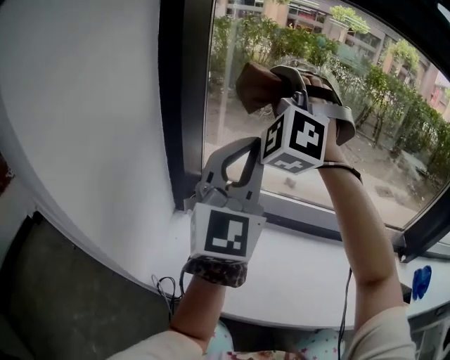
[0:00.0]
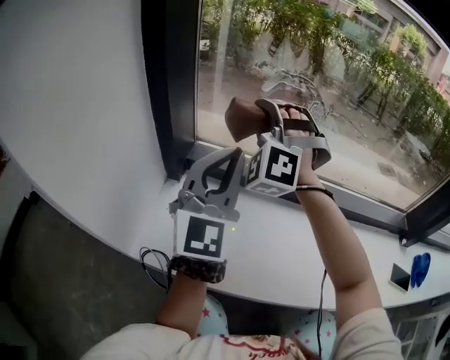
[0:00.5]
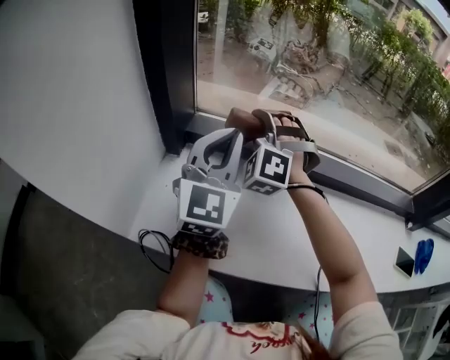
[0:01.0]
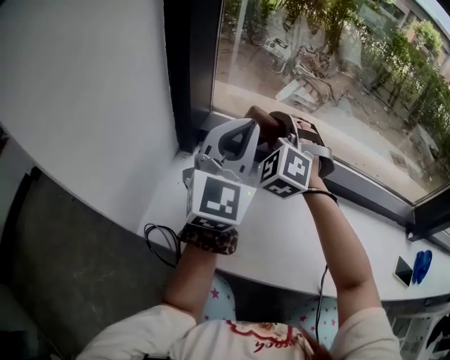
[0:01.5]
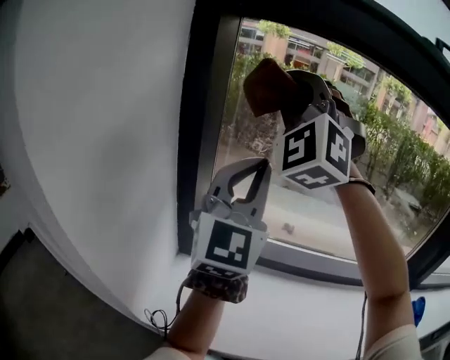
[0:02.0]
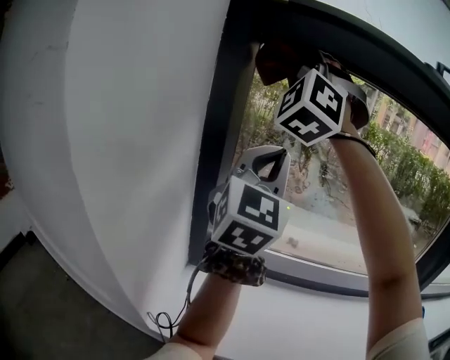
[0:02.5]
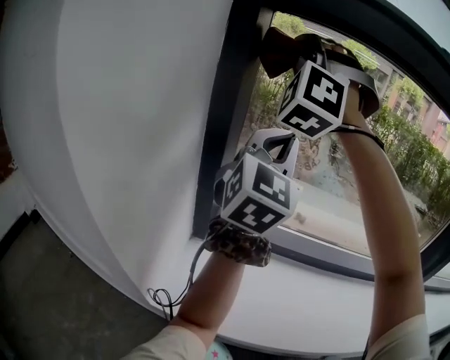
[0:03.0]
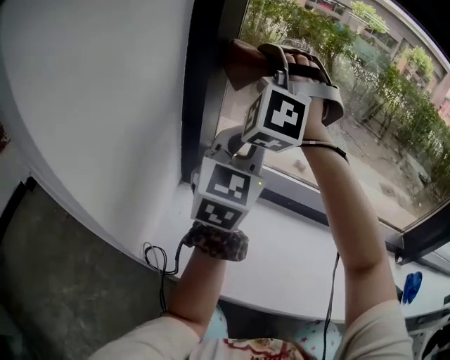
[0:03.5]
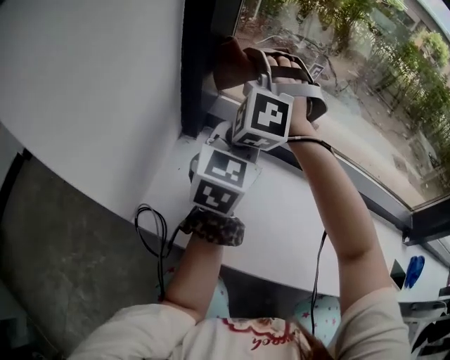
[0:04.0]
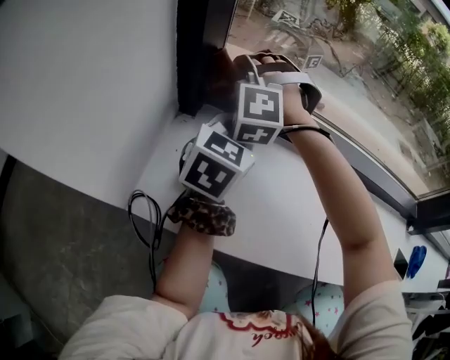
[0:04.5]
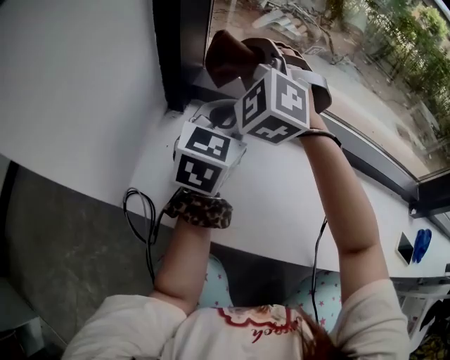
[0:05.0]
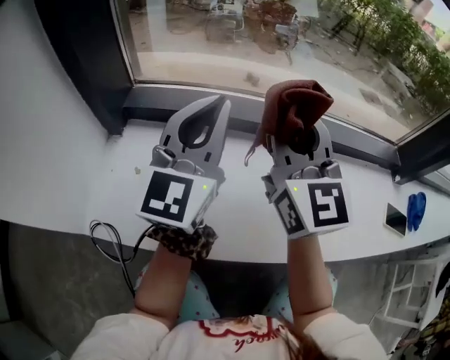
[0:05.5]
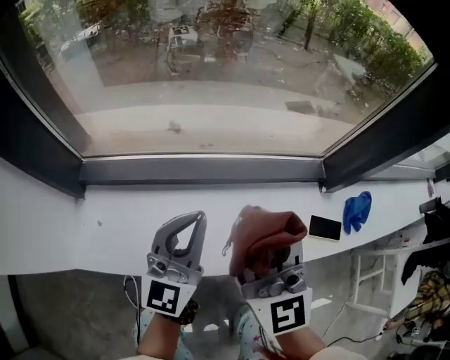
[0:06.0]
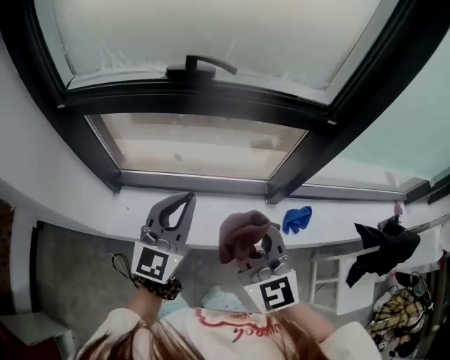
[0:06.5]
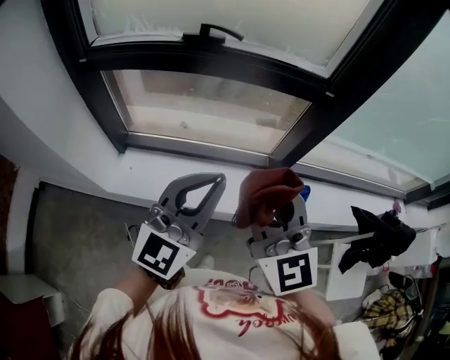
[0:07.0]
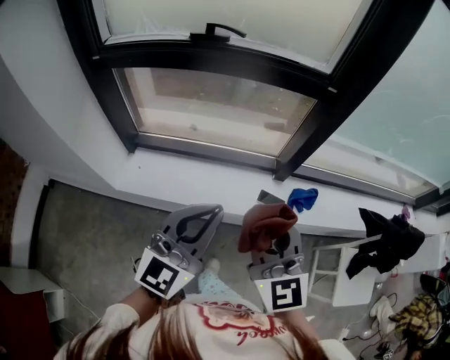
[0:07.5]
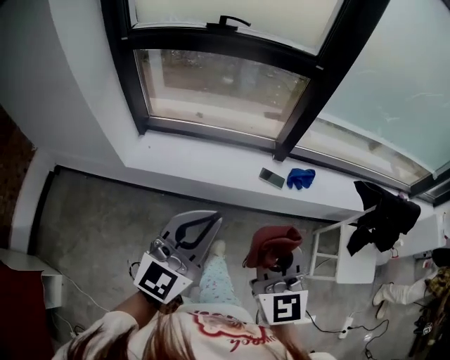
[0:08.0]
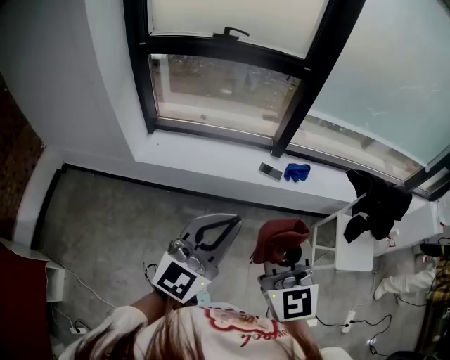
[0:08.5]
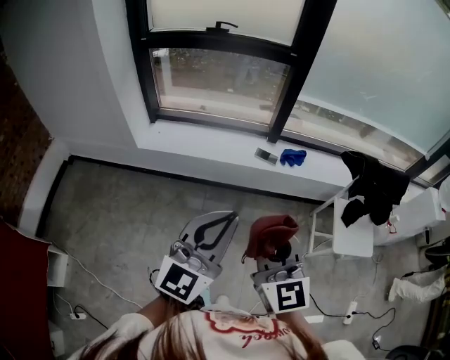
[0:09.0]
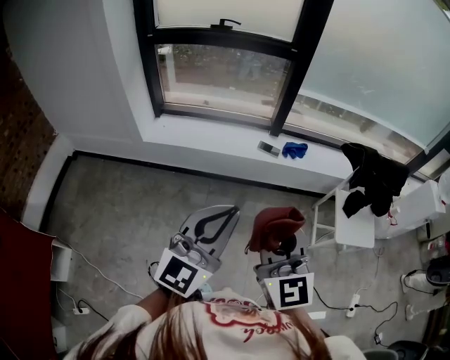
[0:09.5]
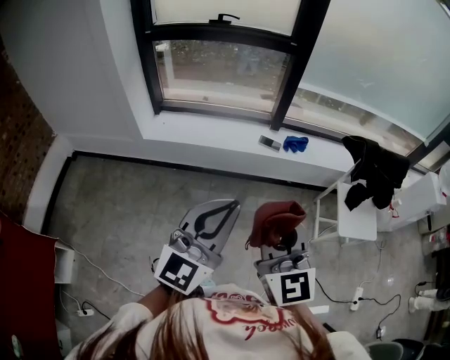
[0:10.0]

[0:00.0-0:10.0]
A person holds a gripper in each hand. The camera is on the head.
0:00.0 to 0:02.0: The left gripper moves approximately 15 cm downward and comes back.
0:02.0 to 0:04.0: The left gripper shifts some 25 cm downward, and swivels approximately 40 degrees.
0:04.0 to 0:06.0: The left gripper shifts by roughly 35 cm, and changes its angle by about 20 degrees.
0:06.0 to 0:08.0: The left gripper shifts by roughly 70 cm.
0:08.0 to 0:10.0: The left gripper moves roughly 30 cm.

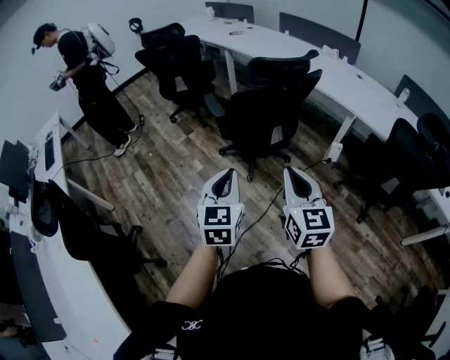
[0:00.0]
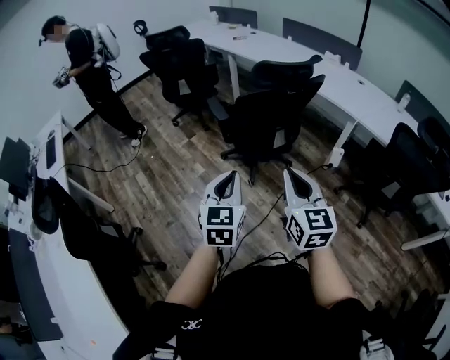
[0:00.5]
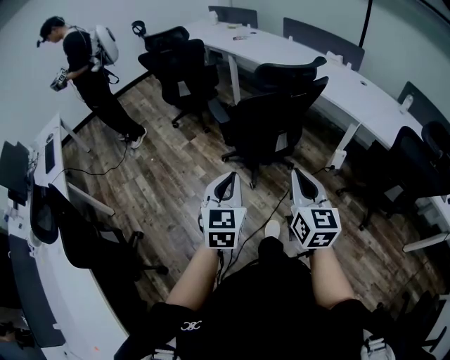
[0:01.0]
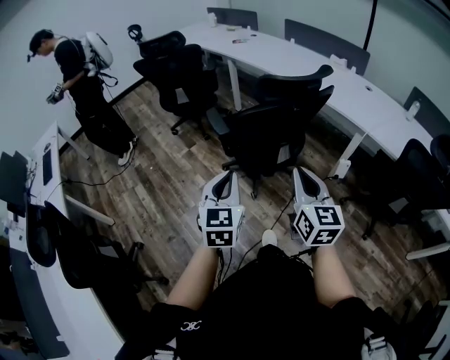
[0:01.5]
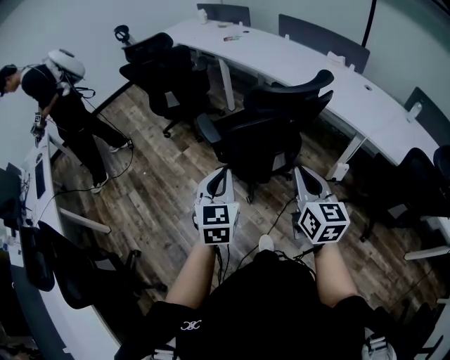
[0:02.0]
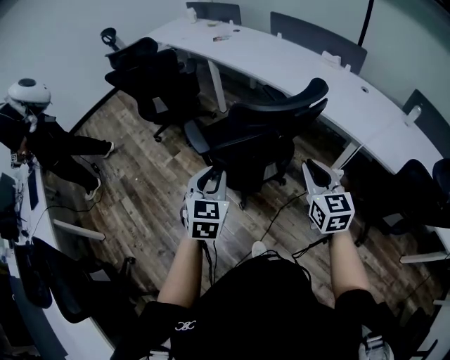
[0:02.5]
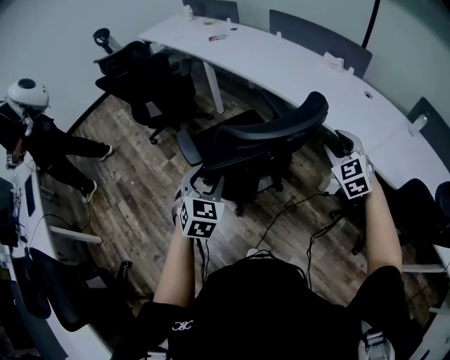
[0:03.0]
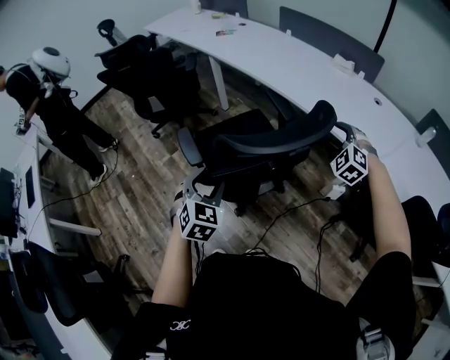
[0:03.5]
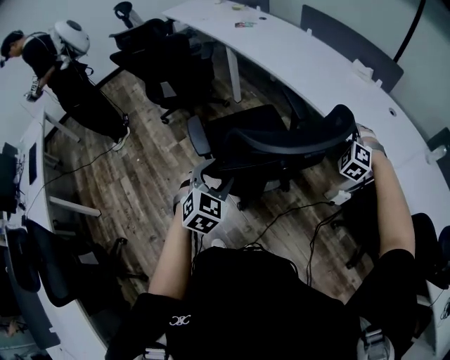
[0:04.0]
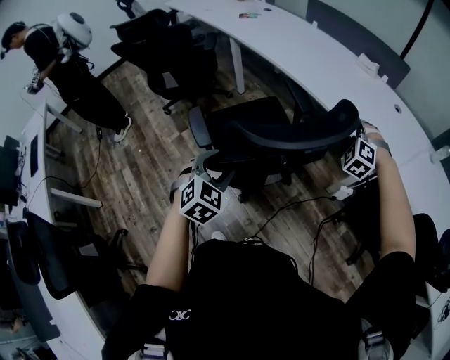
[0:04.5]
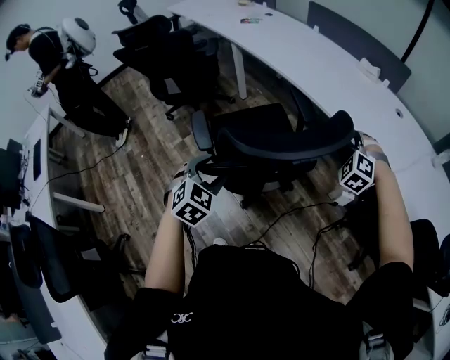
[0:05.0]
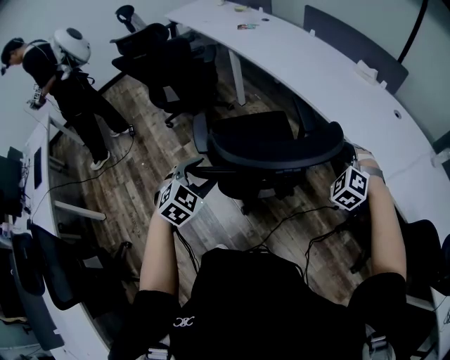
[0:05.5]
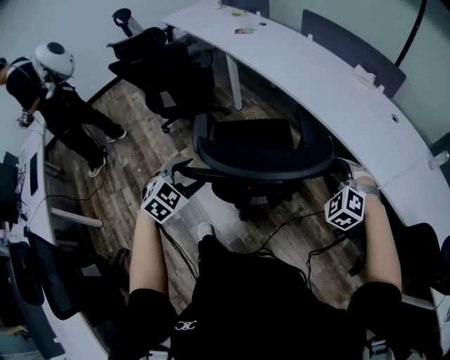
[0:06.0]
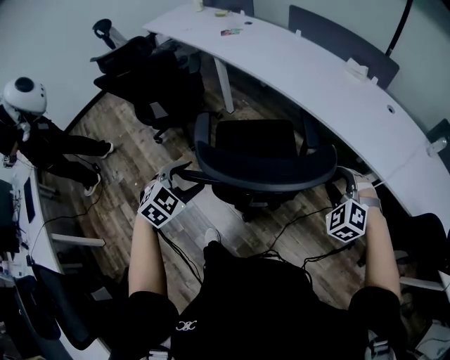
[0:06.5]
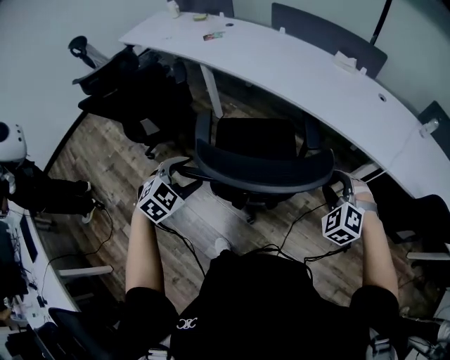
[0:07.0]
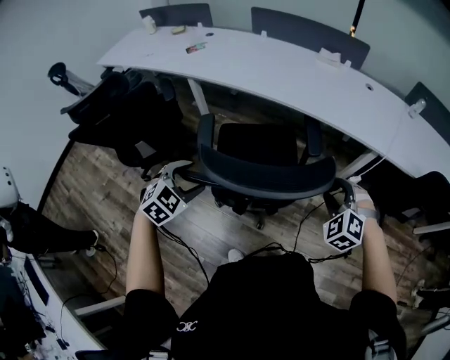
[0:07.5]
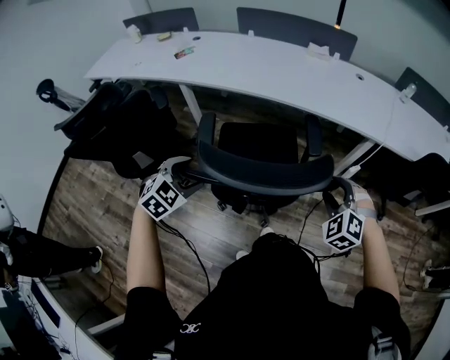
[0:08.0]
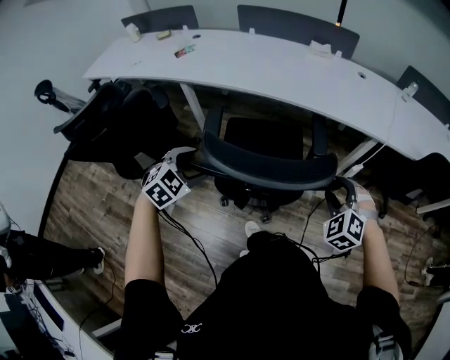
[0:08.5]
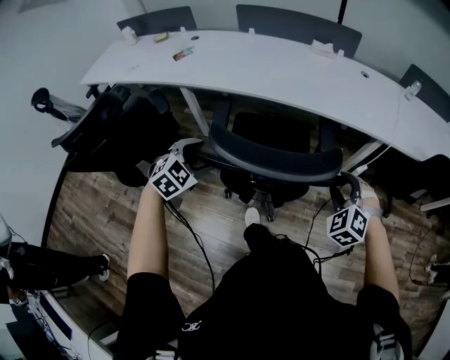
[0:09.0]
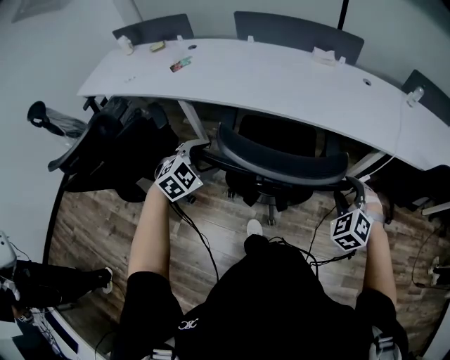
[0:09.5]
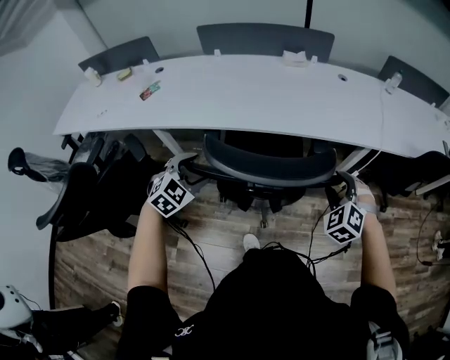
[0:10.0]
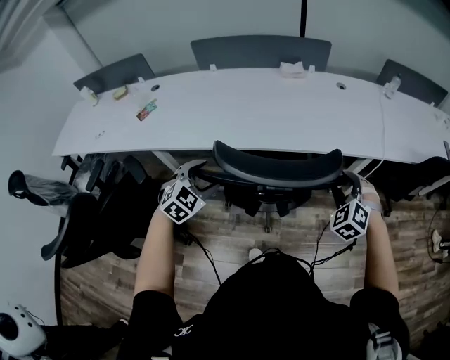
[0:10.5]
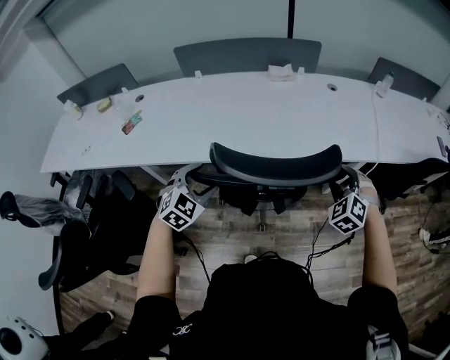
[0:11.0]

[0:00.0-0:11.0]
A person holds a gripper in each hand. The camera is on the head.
0:00.0 to 0:02.0: The grippers both shift forward by roughly 25 cm.
0:02.0 to 0:03.5: The left gripper moves forward, about 20 cm, rotates approximately 30 degrees, and opens its fingers; the right gripper shifts some 40 cm forward and to the right, twists some 70 degrees counterclockwise, seen from behind, and opens.
0:03.5 to 0:05.5: The left gripper shifts by some 5 cm.
0:05.5 to 0:07.5: The left gripper changes place by about 30 cm, and turns by about 30 degrees; the right gripper changes place by some 20 cm, and changes its angle by about 30 degrees.
0:07.5 to 0:09.0: The right gripper heads to the left, covering about 5 cm. The left gripper shifts some 15 cm forward and to the left.
0:09.0 to 0:11.0: Both grippers move forward, some 30 cm.

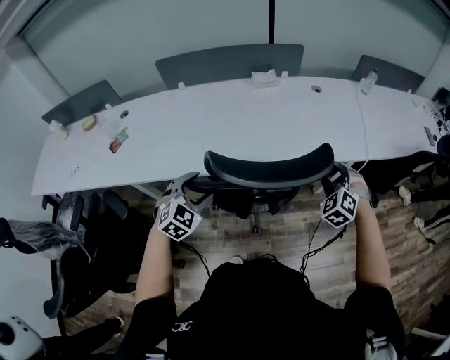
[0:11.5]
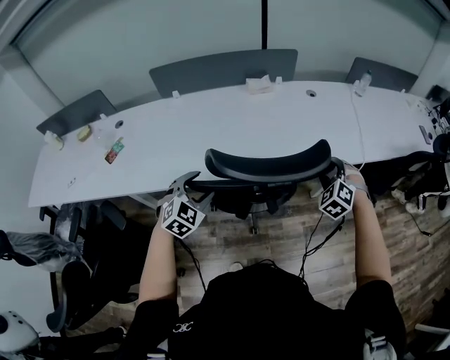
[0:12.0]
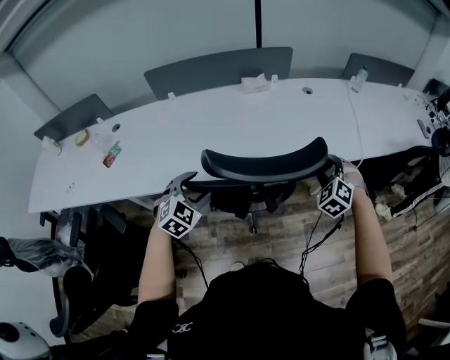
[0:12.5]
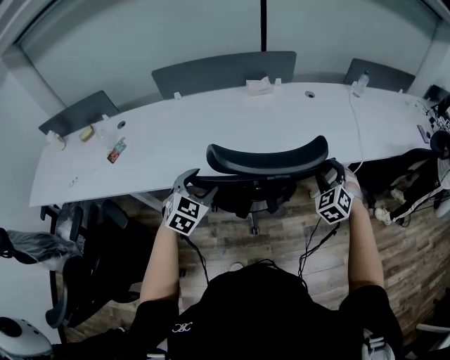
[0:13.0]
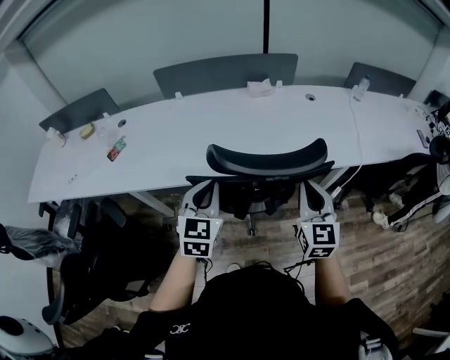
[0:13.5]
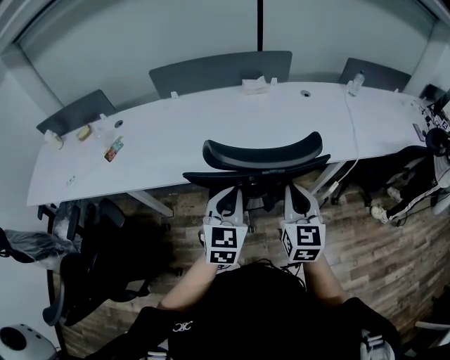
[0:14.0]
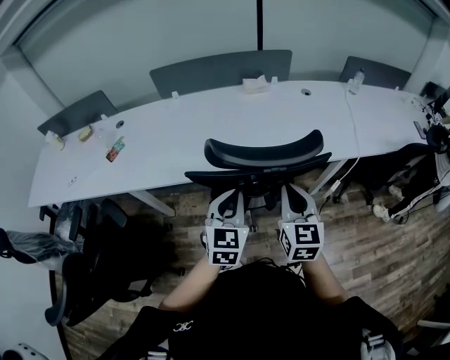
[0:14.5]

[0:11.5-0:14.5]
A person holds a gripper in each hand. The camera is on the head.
0:11.5 to 0:13.0: The grippers move only a little.
0:13.0 to 0:14.5: The right gripper travels to the left, backward and upward by about 20 cm, rolls clockwise, seen from behind, by roughly 50 degrees, and closes. The left gripper goes approximately 15 cm to the right, backward and upward, turns by about 30 degrees, and closes.

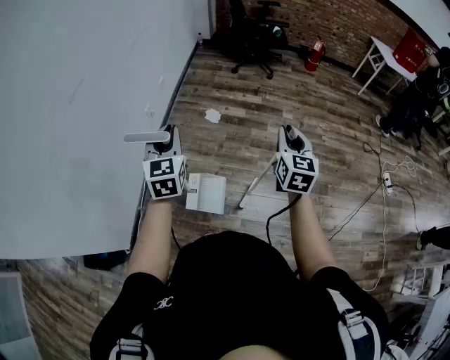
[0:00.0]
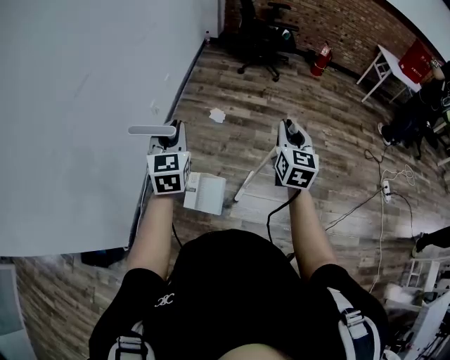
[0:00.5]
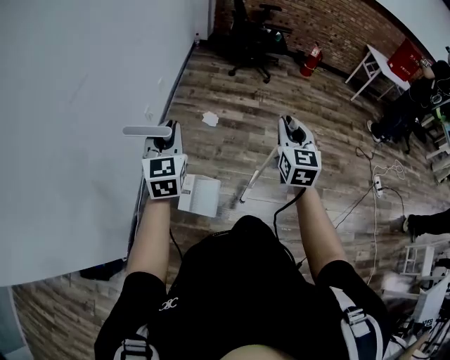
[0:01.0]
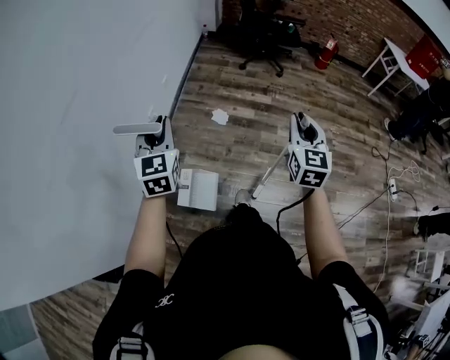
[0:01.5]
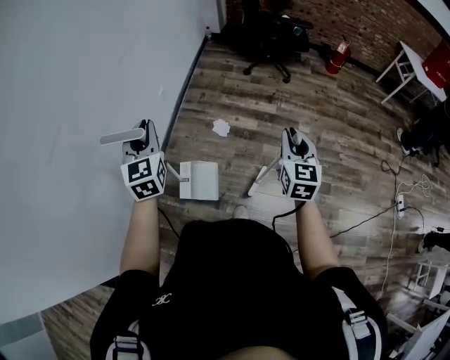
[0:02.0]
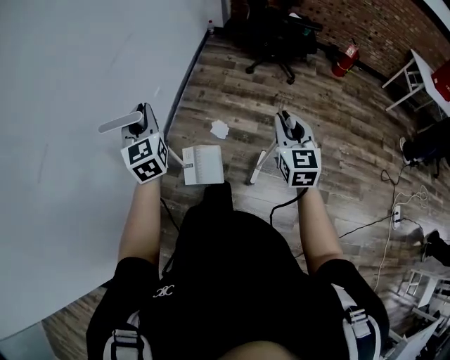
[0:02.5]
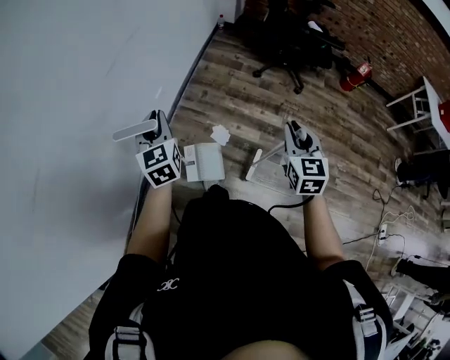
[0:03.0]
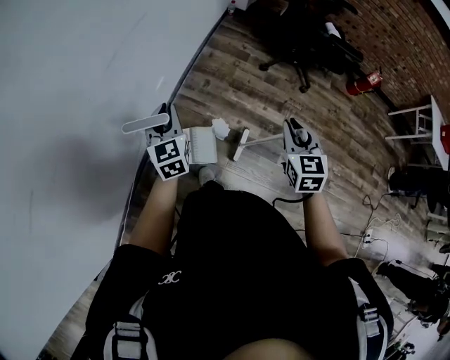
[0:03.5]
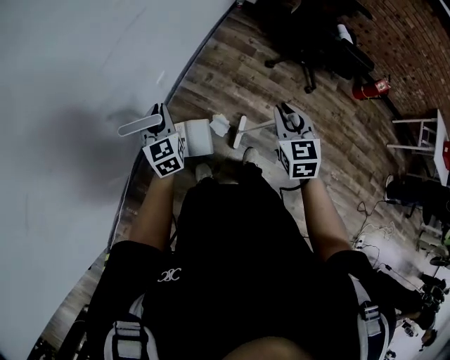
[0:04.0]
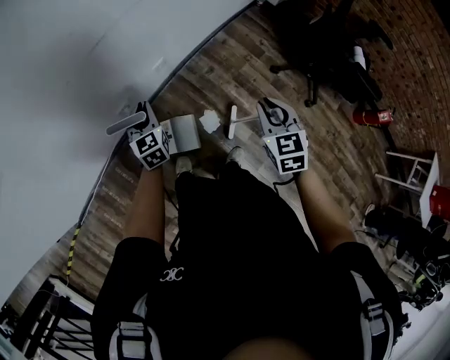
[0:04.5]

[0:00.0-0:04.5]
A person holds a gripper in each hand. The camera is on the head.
0:00.0 to 0:02.0: Both grippers travel together forward, some 30 cm.
0:02.0 to 0:04.5: The left gripper shifts by approximately 50 cm, and changes its angle by about 40 degrees. The right gripper ends up roughly 50 cm from where it was, and turns by approximately 50 degrees.
